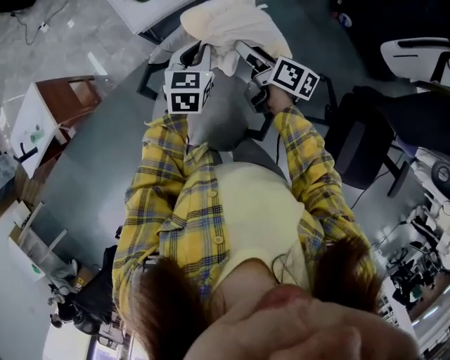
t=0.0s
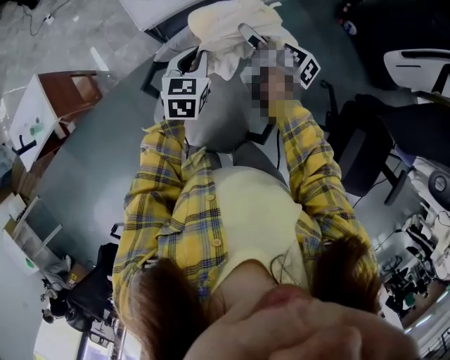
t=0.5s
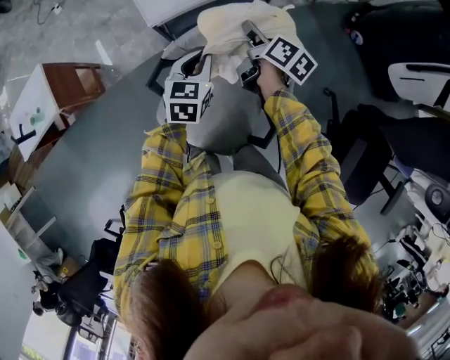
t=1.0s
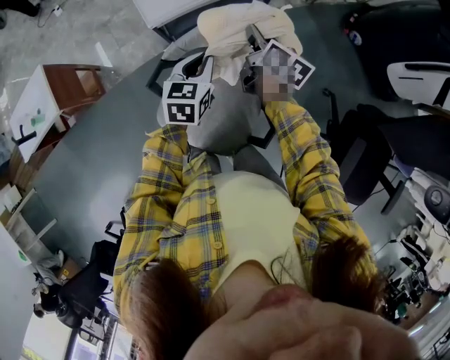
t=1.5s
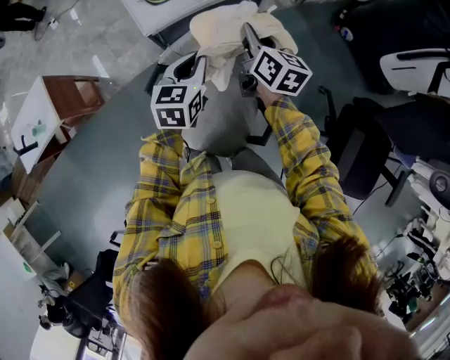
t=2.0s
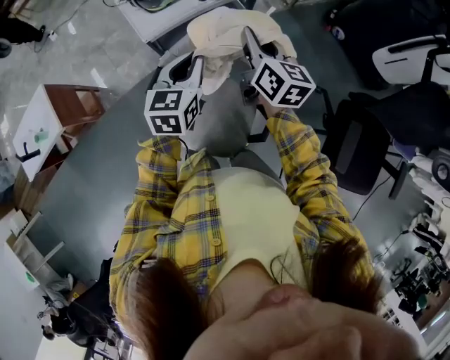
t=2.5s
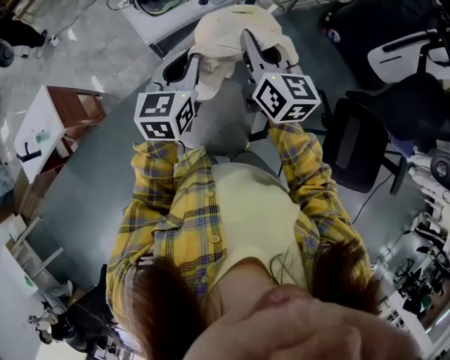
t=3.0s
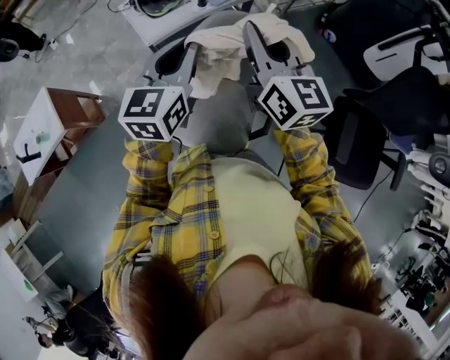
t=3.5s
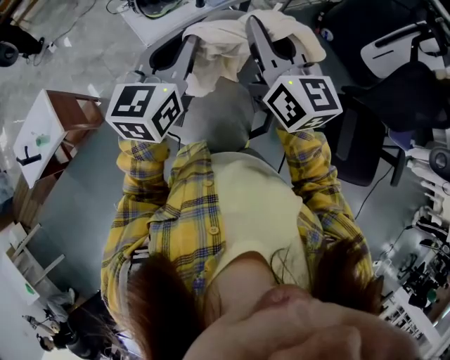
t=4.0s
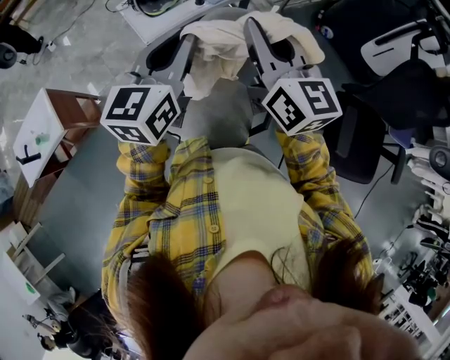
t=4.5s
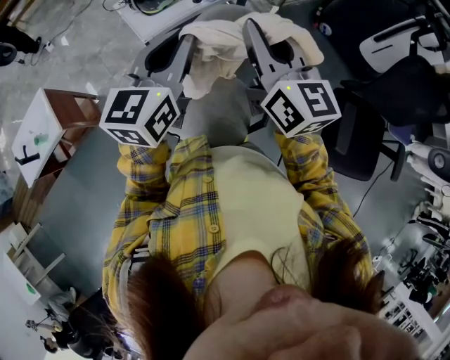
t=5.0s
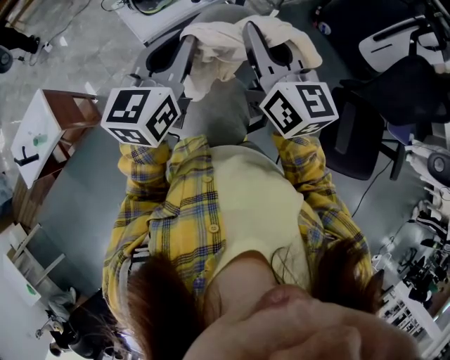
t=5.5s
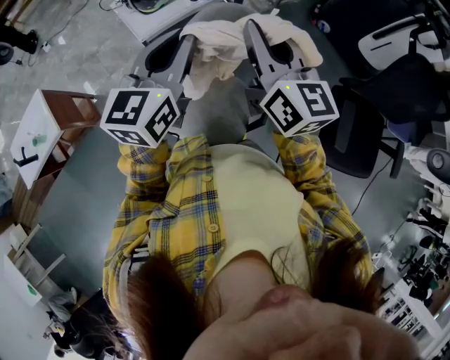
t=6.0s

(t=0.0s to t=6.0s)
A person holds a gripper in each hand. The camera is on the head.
t=0.0s - t=2.0s: The right gripper is displaced upward by roughly 5 cm, turns by approximately 30 degrees, and closes; the left gripper moves approximately 5 cm.
t=2.0s - t=4.0s: The right gripper shifts approximately 25 cm upward and backward, and turns by some 30 degrees; the left gripper is displaced upward by some 20 cm, and rotates roughly 20 degrees.
t=4.0s - t=6.0s: There are only small adjustments of the grippers.

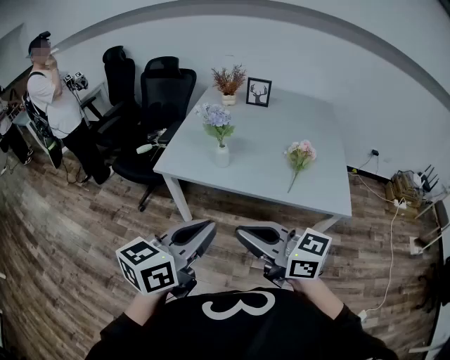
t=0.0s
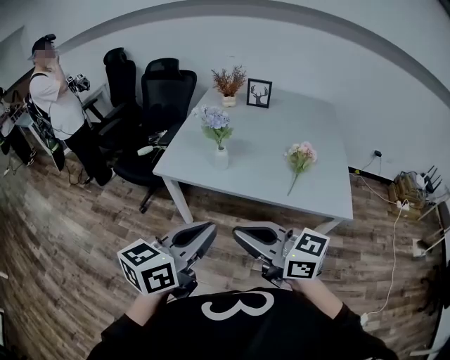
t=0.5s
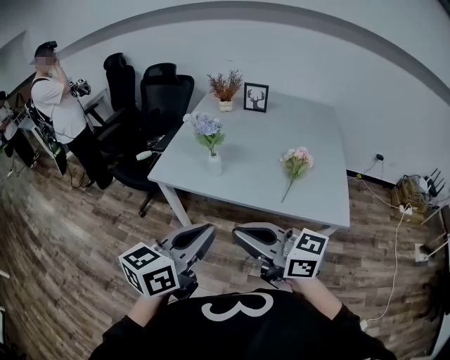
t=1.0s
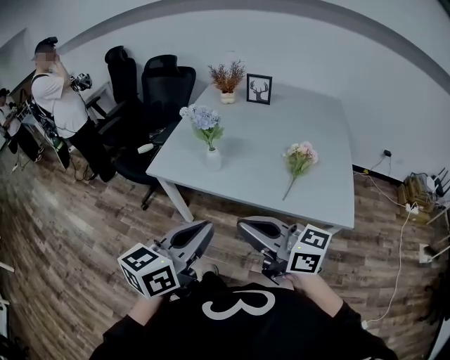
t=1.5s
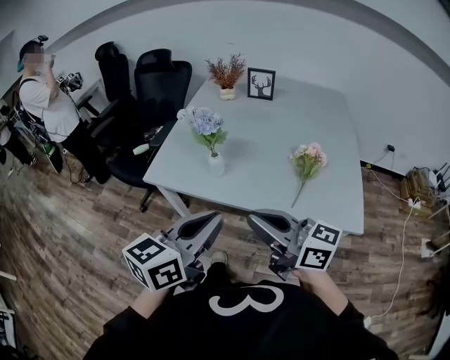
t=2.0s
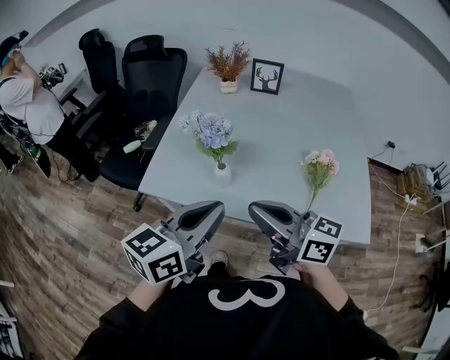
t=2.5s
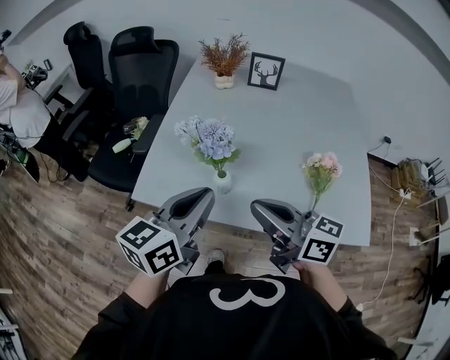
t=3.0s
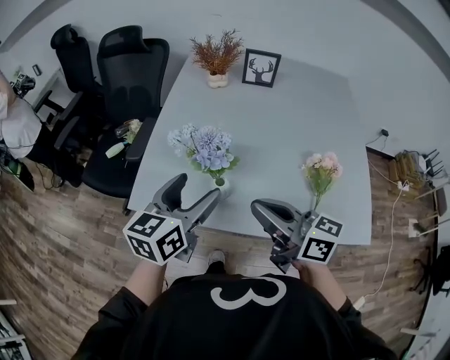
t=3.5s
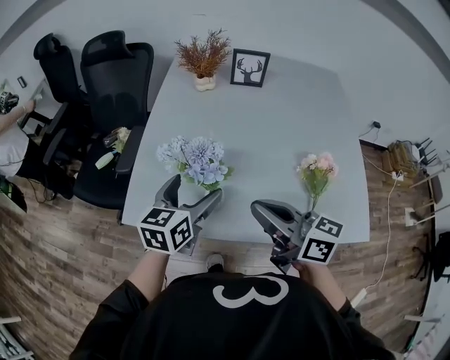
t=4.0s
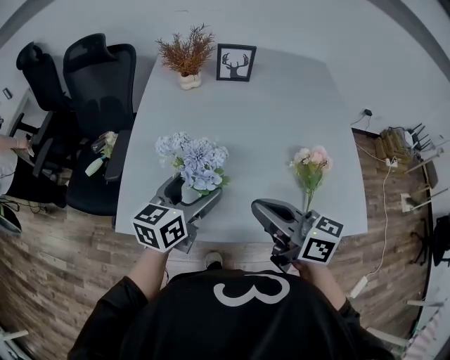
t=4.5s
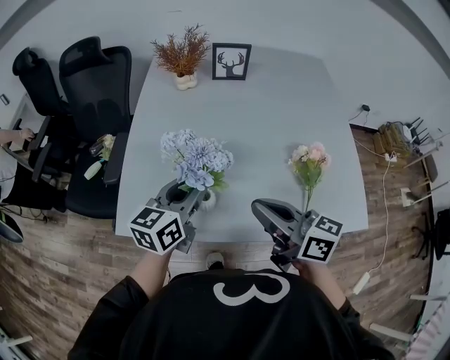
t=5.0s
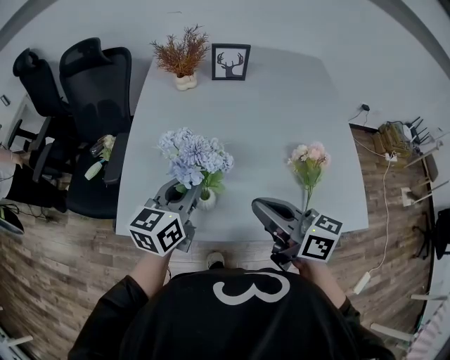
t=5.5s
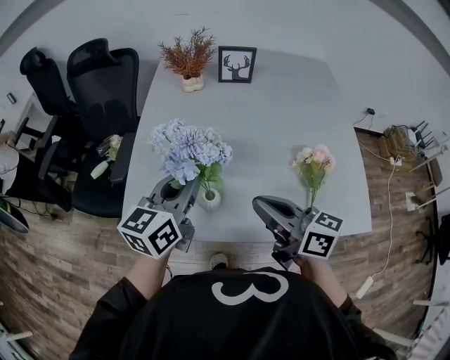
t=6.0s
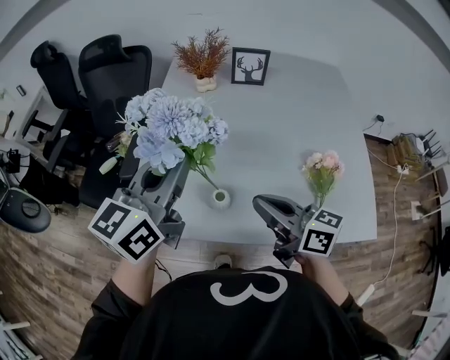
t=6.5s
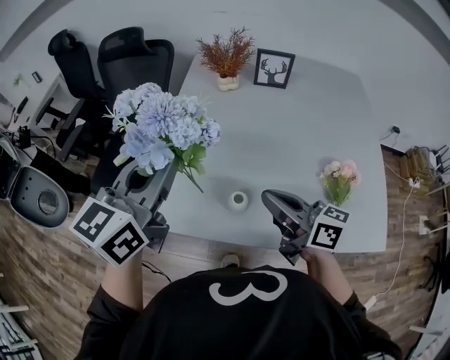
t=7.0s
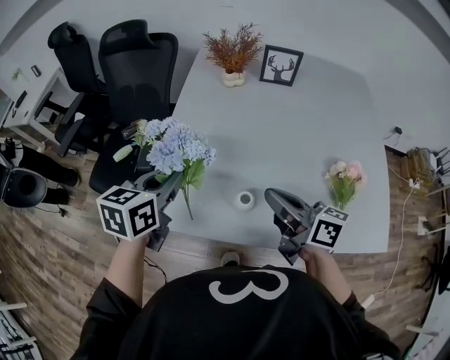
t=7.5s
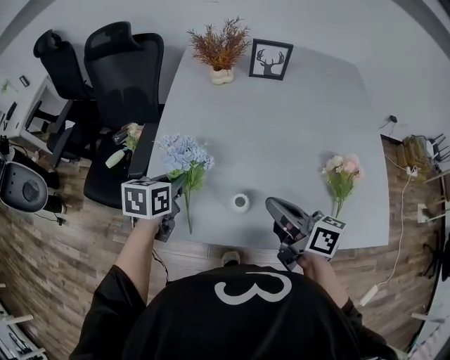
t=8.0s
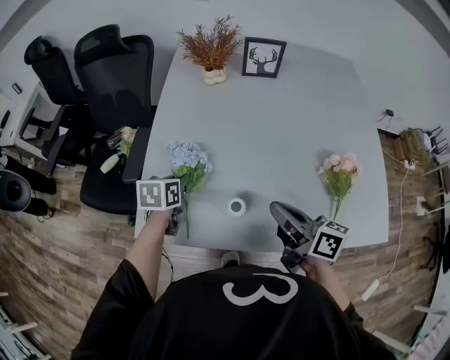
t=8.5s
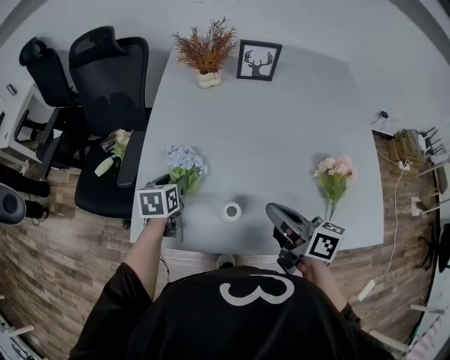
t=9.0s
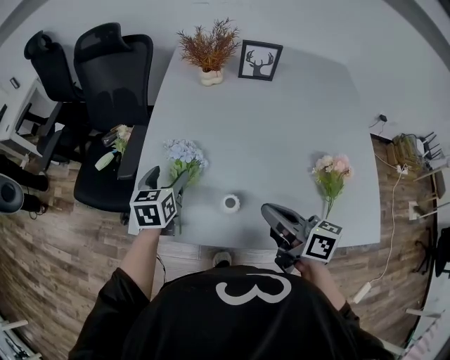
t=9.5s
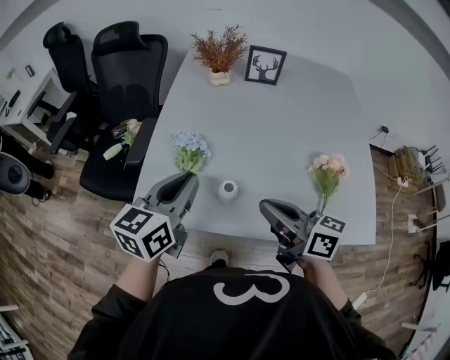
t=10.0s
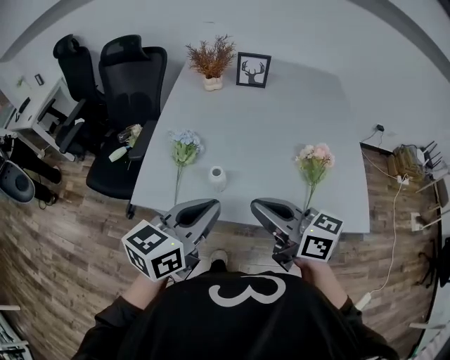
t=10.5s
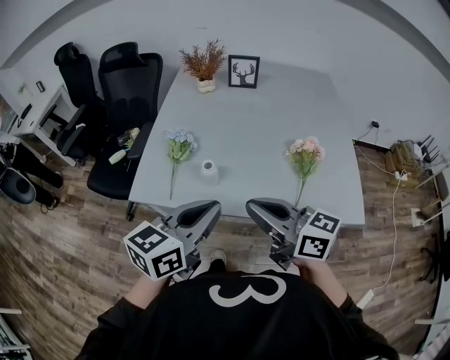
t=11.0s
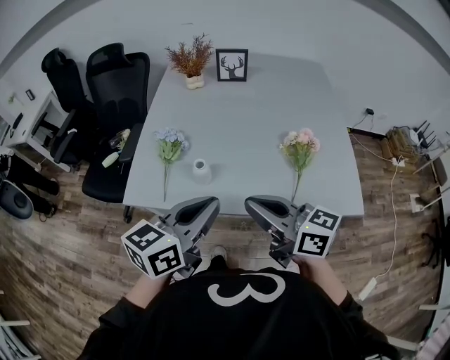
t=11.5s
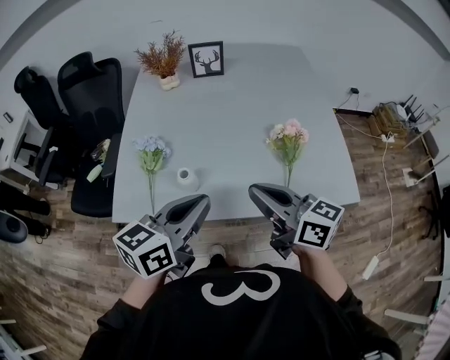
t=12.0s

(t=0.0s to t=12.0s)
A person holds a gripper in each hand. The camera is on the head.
t=0.0s - t=2.0s: Both grippers move forward and to the right, approximately 15 cm.
t=2.0s - t=4.0s: The right gripper goes approximately 20 cm forward; the left gripper moves forward and downward, some 35 cm, and opens its fingers.
t=4.0s - t=6.0s: The left gripper is displaced upward by approximately 5 cm, and closes up.
t=6.0s - t=8.0s: The right gripper shifts approximately 5 cm downward. Meanwhile the left gripper goes roughly 20 cm downward, to the left and forward, and tips its fingers downward by roughly 30 degrees.
t=8.0s - t=10.0s: The right gripper heads backward, covering about 5 cm, while the left gripper heads upward, backward and to the right, covering some 15 cm, turns by about 30 degrees, and opens, then closes again.
t=10.0s - t=12.0s: The left gripper travels to the right and backward by approximately 15 cm, and changes its angle by roughly 20 degrees. Meanwhile the right gripper goes some 10 cm to the right and backward.

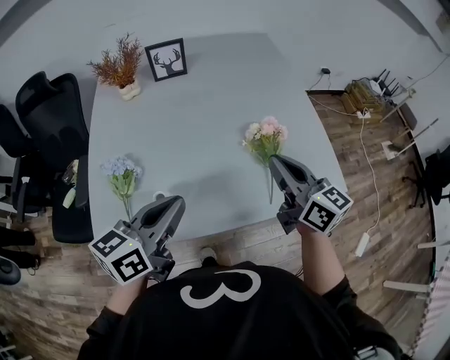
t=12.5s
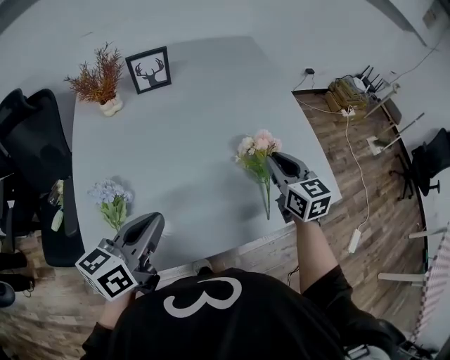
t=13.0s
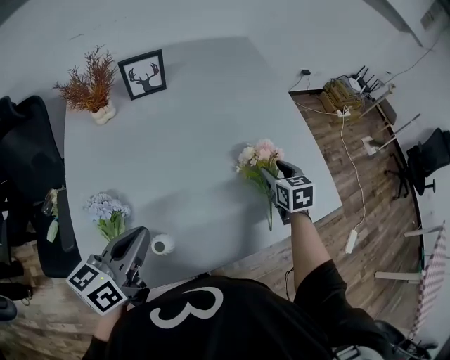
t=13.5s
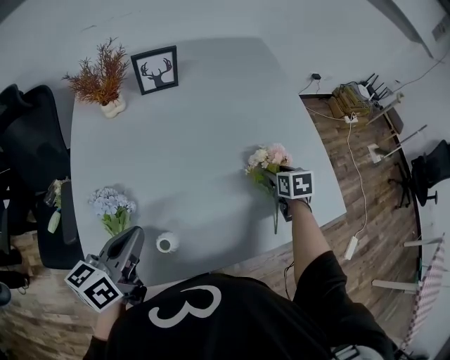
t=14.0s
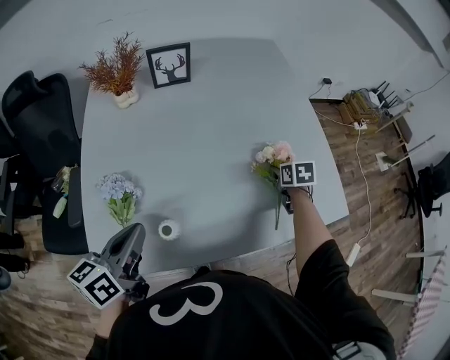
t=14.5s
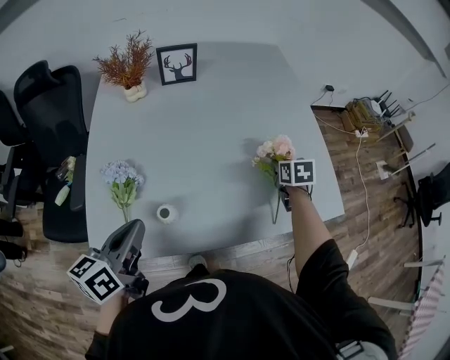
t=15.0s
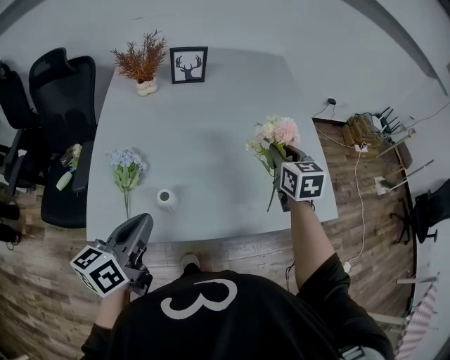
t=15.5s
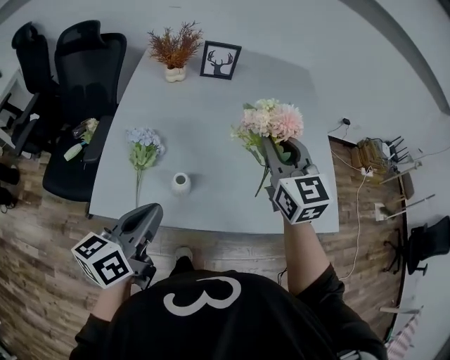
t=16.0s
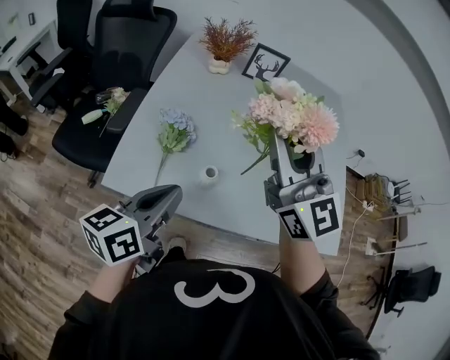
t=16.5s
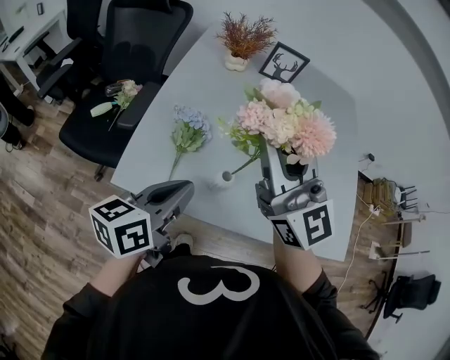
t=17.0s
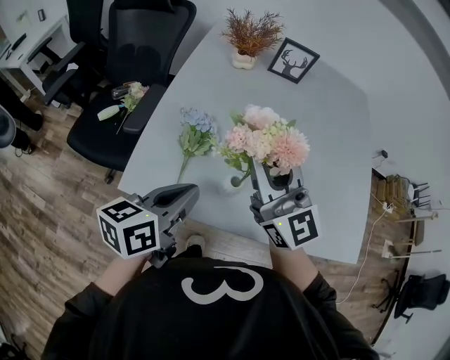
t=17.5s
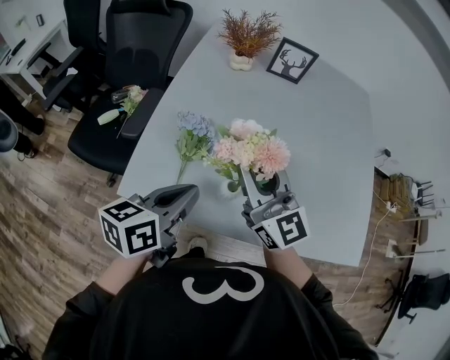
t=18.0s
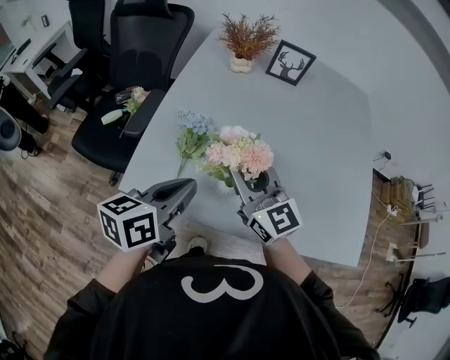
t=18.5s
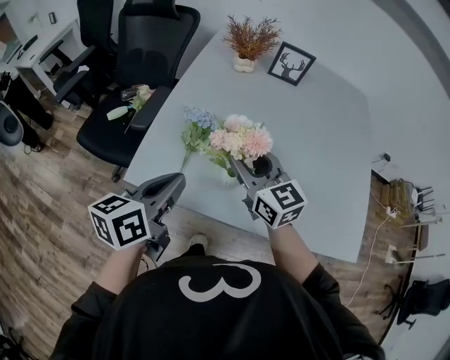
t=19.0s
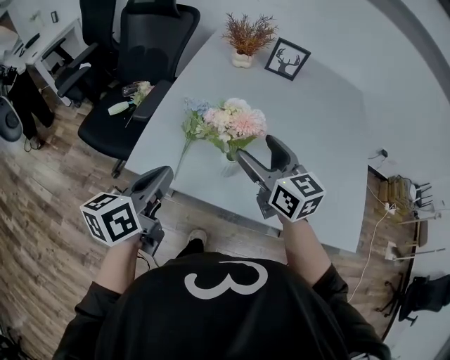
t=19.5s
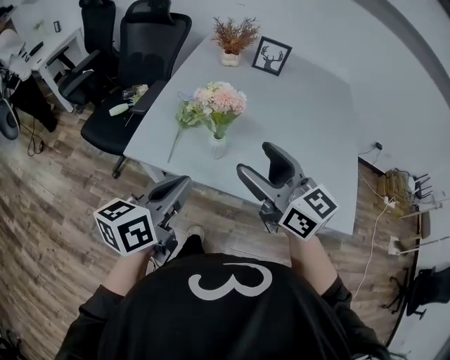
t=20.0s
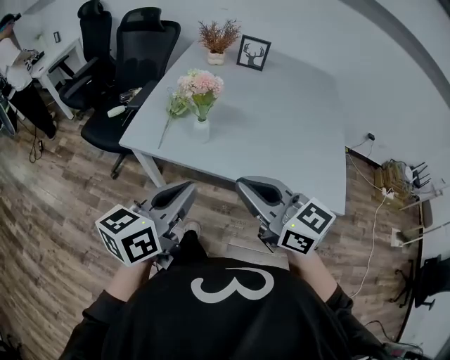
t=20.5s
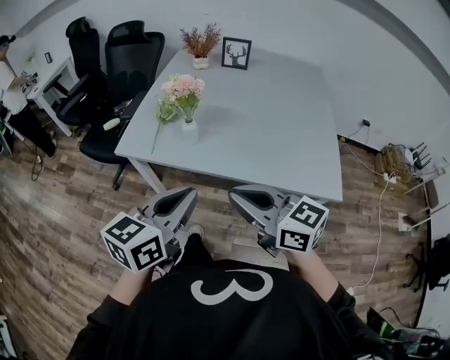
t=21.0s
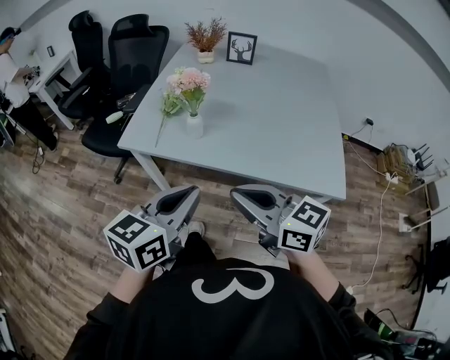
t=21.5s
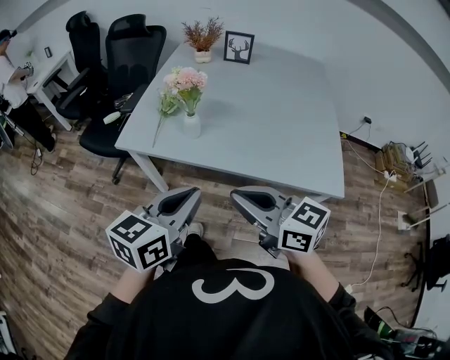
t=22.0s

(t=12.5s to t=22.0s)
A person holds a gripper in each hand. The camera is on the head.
t=12.5s - t=14.5s: The left gripper shifts some 10 cm to the left. Meanwhile the right gripper is displaced downward and forward by about 30 cm, angles its fingers downward, by roughly 50 degrees, and opens.
t=14.5s - t=16.5s: The left gripper travels backward by approximately 10 cm. Meanwhile the right gripper is displaced upward, to the left and backward by roughly 50 cm, and tilts its fingers approximately 70 degrees upward.
t=16.5s - t=18.0s: The left gripper moves about 5 cm, while the right gripper is displaced downward and to the left by approximately 15 cm.
t=18.0s - t=20.0s: The two grippers go roughly 15 cm backward. The right gripper opens its fingers.
t=20.0s - t=22.0s: The right gripper travels backward by approximately 20 cm, and closes. Meanwhile the left gripper travels backward and to the right by roughly 15 cm.
